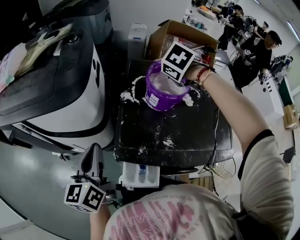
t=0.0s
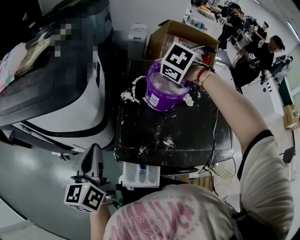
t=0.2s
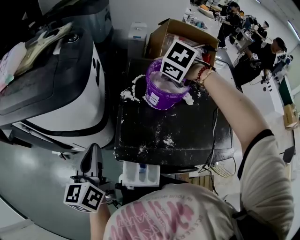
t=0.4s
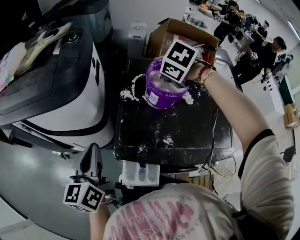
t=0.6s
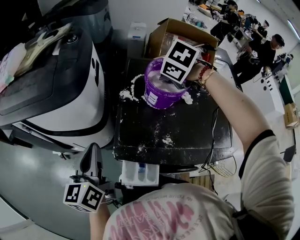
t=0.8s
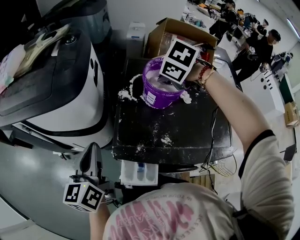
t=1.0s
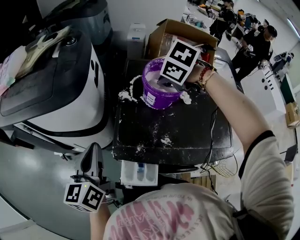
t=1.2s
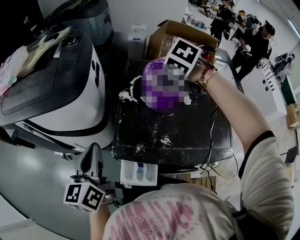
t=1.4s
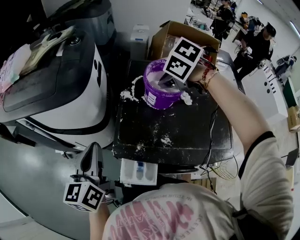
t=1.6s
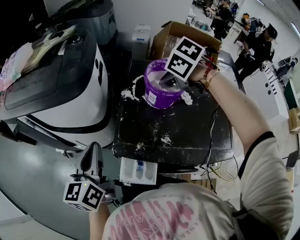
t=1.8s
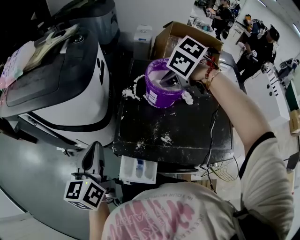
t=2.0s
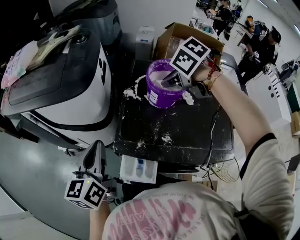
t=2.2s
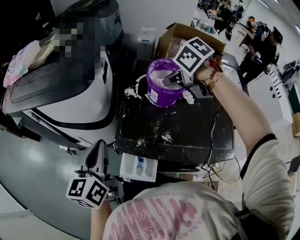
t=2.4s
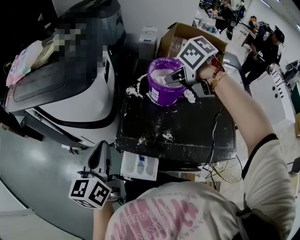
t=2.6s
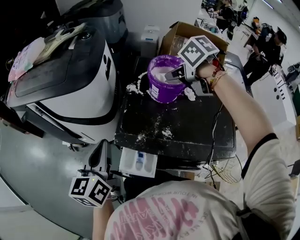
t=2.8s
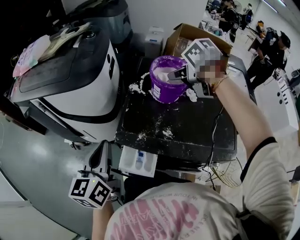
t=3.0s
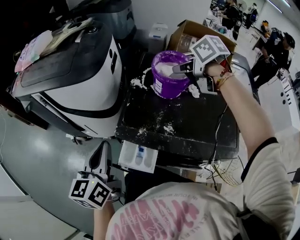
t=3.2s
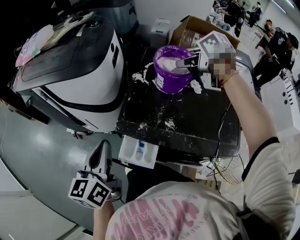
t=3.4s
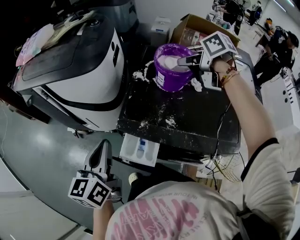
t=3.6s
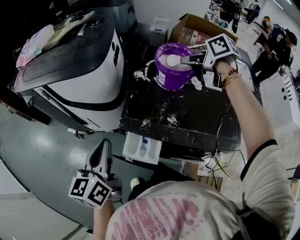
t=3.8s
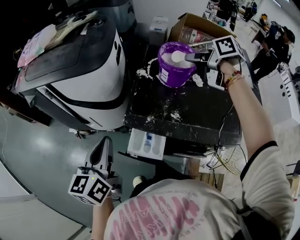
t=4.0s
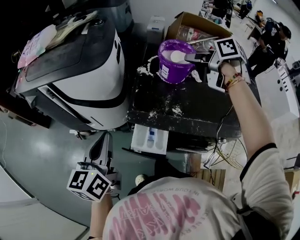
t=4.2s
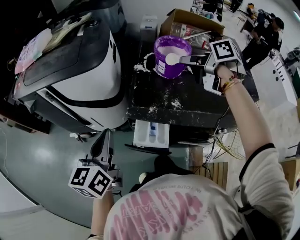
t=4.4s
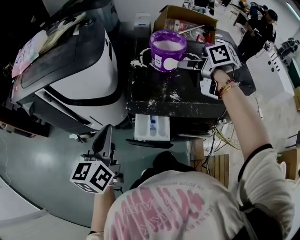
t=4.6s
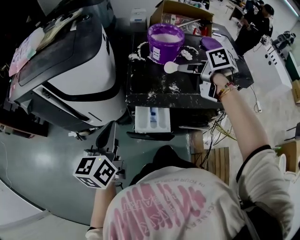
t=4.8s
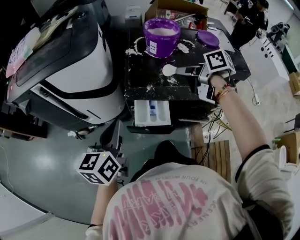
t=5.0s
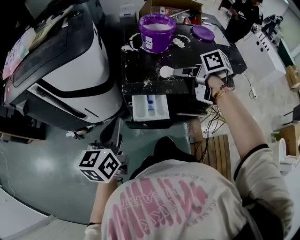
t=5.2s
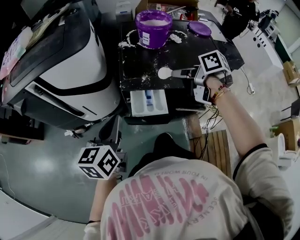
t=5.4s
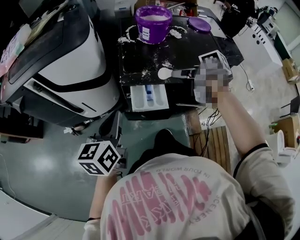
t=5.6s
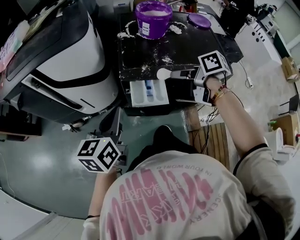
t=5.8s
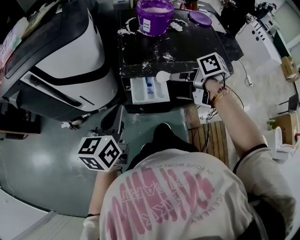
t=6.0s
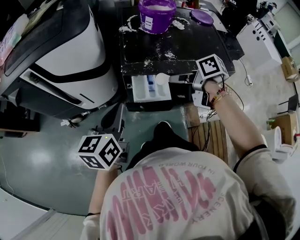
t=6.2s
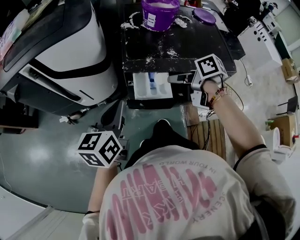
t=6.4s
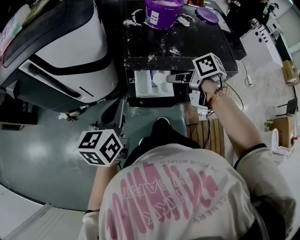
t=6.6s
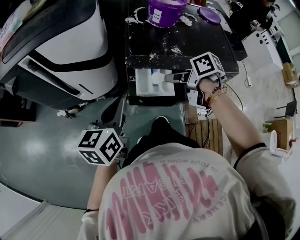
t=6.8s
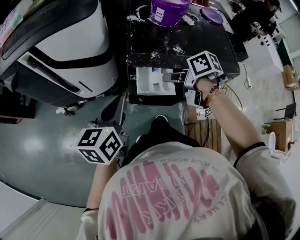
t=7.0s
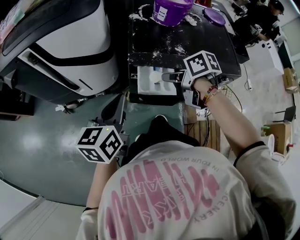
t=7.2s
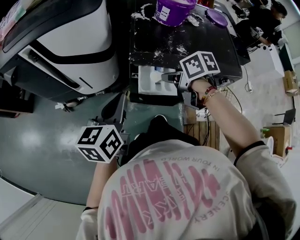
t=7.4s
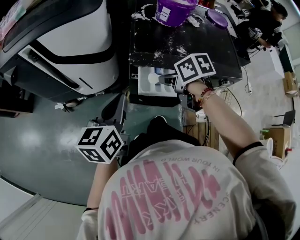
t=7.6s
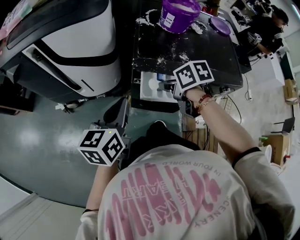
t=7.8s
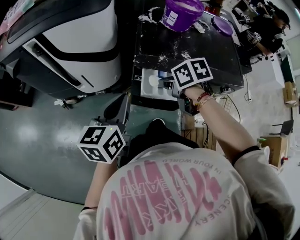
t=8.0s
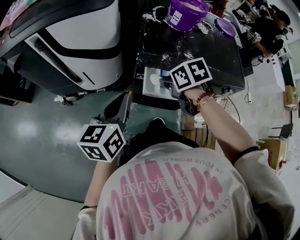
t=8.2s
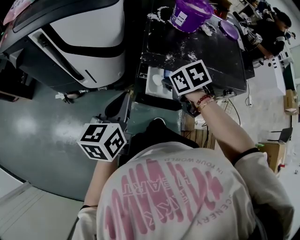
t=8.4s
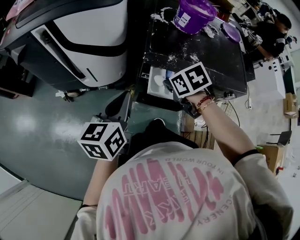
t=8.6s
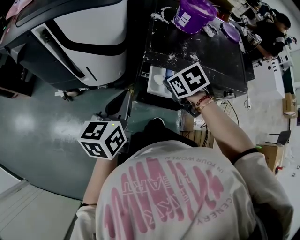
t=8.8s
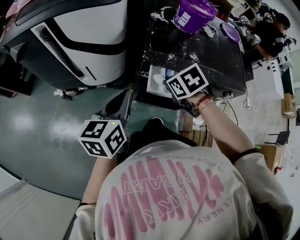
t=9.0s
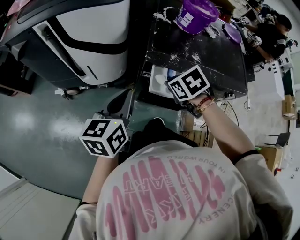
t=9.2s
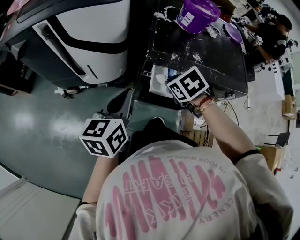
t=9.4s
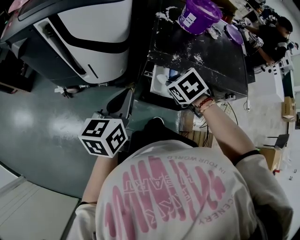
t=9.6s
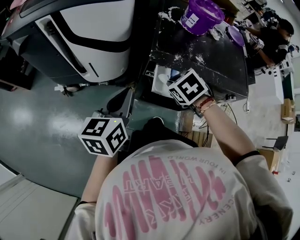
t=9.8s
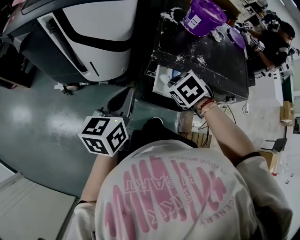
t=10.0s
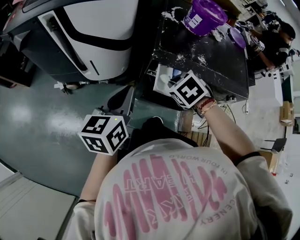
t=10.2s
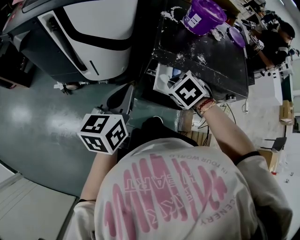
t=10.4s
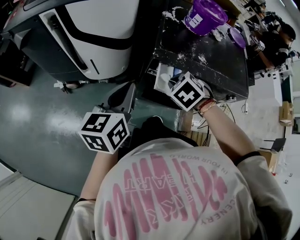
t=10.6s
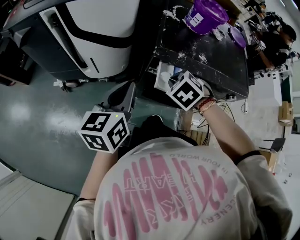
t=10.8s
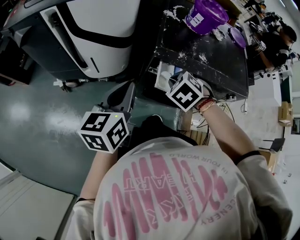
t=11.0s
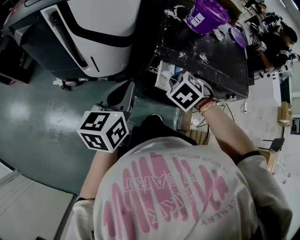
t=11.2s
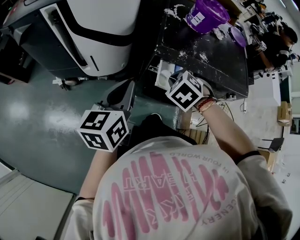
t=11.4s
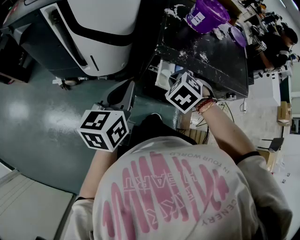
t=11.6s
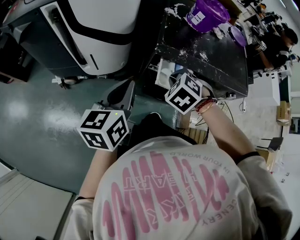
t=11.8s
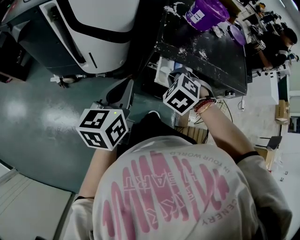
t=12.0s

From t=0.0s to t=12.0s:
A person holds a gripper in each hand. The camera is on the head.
From t=0.0s to t=1.6s: The right gripper moves approximately 10 cm, and rotates roughly 30 degrees.
From t=1.6s to t=3.0s: The left gripper moves backward, some 5 cm, while the right gripper changes its angle by about 30 degrees.
From t=3.0s to t=4.4s: The left gripper moves to the left, roughly 5 cm, while the right gripper shifts about 10 cm backward, and changes its angle by about 30 degrees.
From t=4.4s to t=6.0s: The right gripper heads backward, downward and to the left, covering some 25 cm. The left gripper goes about 10 cm downward and backward, and rotates approximately 20 degrees.
From t=6.0s to t=7.6s: The right gripper is displaced to the left and downward by some 10 cm, and changes its angle by approximately 30 degrees.
From t=7.6s to t=9.0s: The right gripper swivels approximately 30 degrees.
From t=9.0s to t=10.4s: The right gripper rotates roughly 20 degrees.
From t=10.4s to t=12.0s: The right gripper turns by roughly 20 degrees.

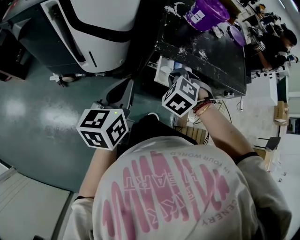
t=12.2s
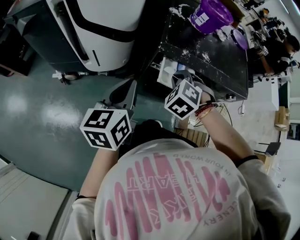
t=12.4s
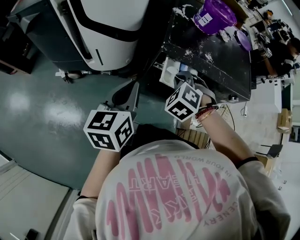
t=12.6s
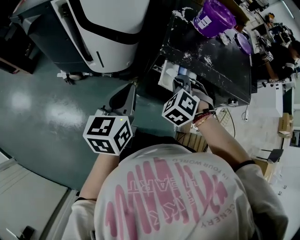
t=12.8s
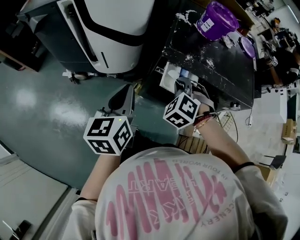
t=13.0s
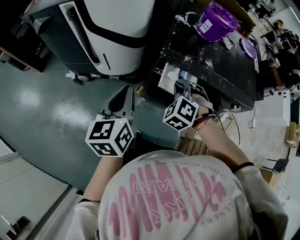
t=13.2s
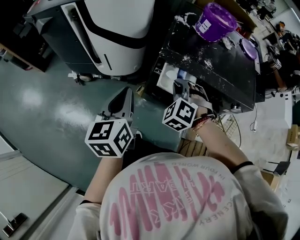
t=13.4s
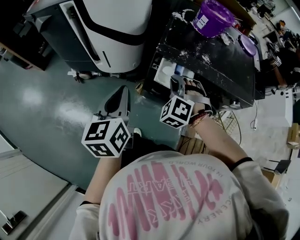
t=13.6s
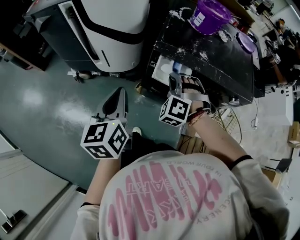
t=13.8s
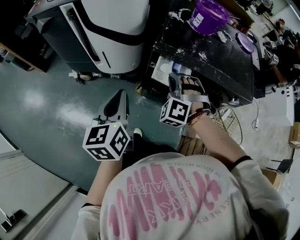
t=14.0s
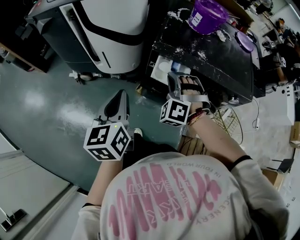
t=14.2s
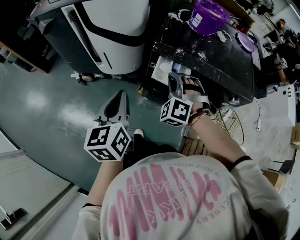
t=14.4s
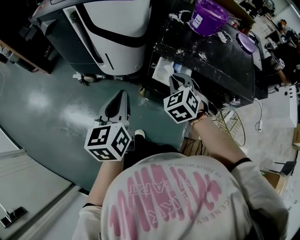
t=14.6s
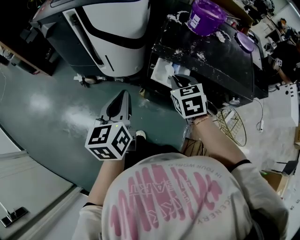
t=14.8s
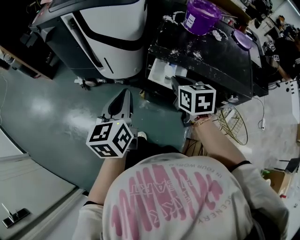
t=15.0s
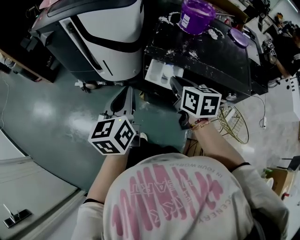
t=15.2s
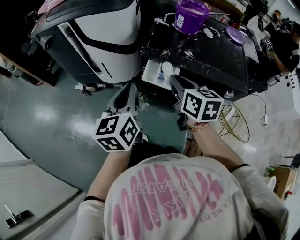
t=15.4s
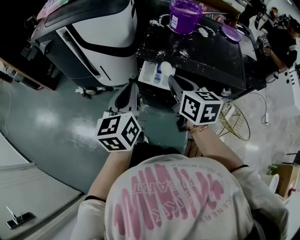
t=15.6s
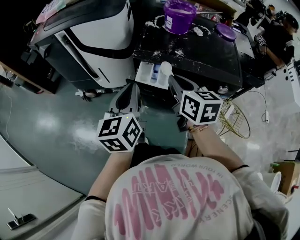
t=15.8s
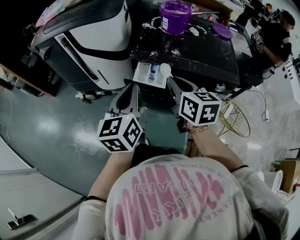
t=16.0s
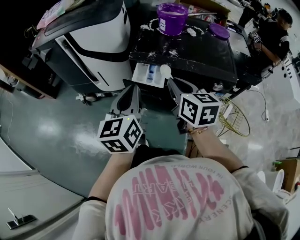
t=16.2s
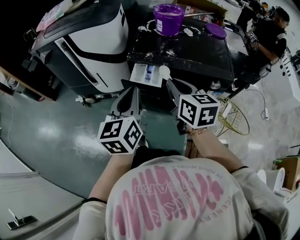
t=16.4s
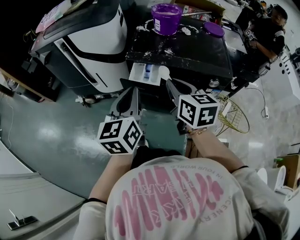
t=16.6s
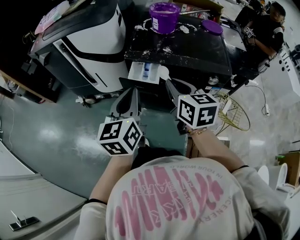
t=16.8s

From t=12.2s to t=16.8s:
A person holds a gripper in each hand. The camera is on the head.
From t=12.2s to t=13.8s: The right gripper rotates some 30 degrees. The left gripper heads backward, covering roughly 5 cm, and rotates about 20 degrees.
From t=13.8s to t=15.2s: The right gripper moves upward, approximately 5 cm, and rolls clockwise, seen from behind, by roughly 90 degrees. Meanwhile the left gripper travels to the right by roughly 5 cm.
From t=15.2s to t=16.8s: The left gripper heads to the right and backward, covering approximately 10 cm; the right gripper moves backward, upward and to the right, about 15 cm.

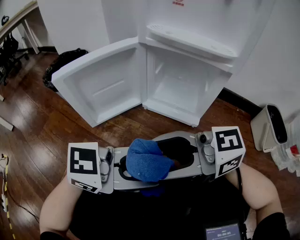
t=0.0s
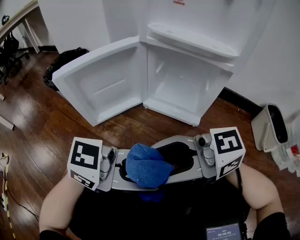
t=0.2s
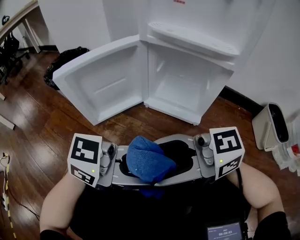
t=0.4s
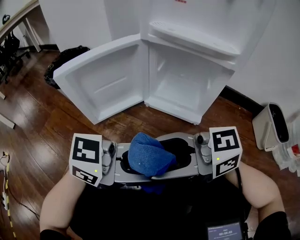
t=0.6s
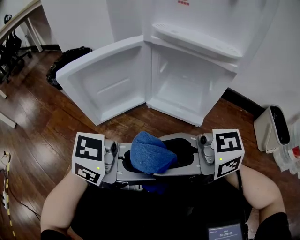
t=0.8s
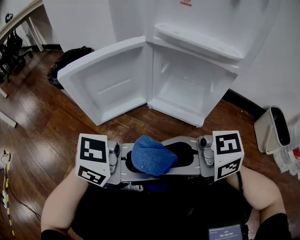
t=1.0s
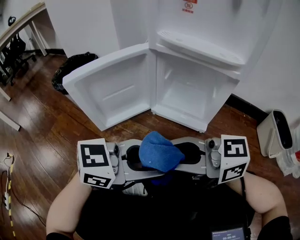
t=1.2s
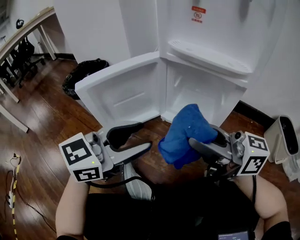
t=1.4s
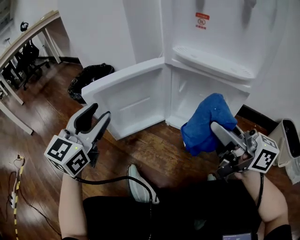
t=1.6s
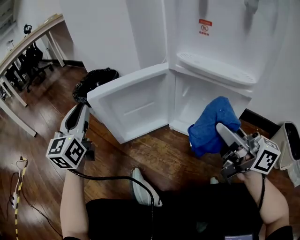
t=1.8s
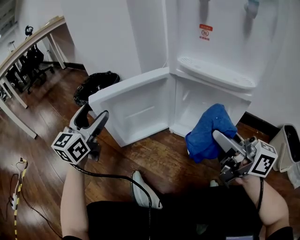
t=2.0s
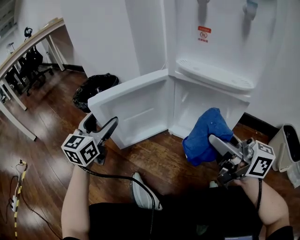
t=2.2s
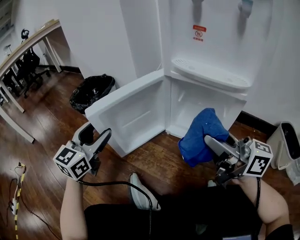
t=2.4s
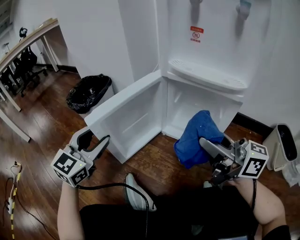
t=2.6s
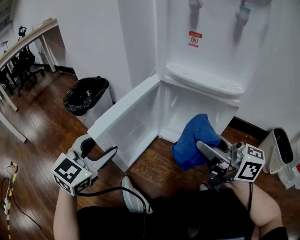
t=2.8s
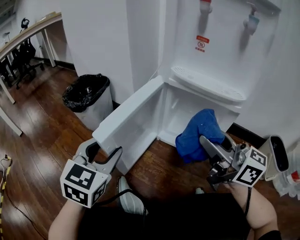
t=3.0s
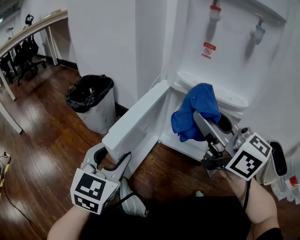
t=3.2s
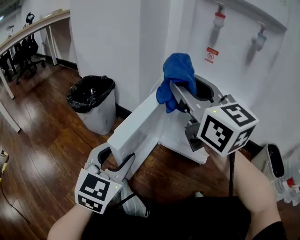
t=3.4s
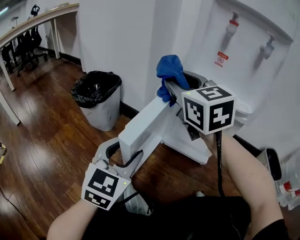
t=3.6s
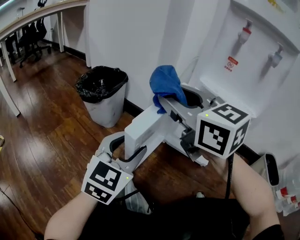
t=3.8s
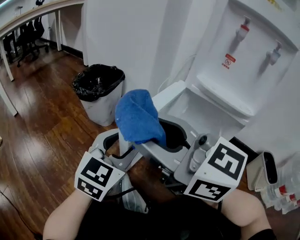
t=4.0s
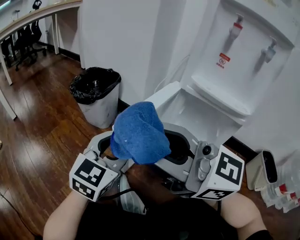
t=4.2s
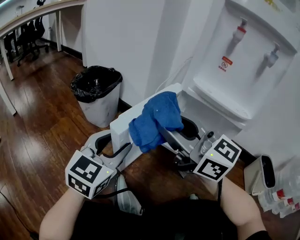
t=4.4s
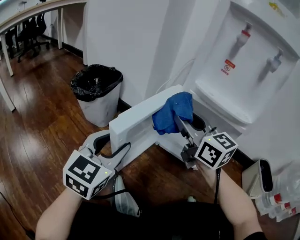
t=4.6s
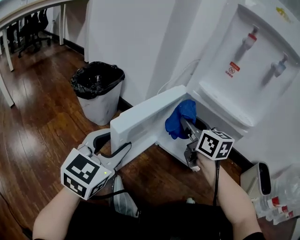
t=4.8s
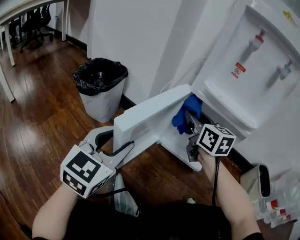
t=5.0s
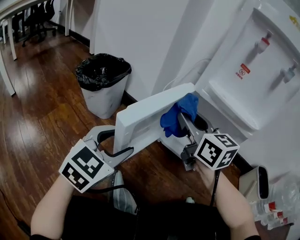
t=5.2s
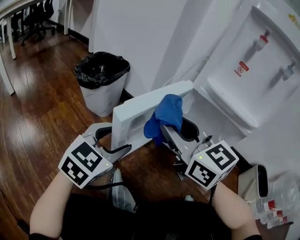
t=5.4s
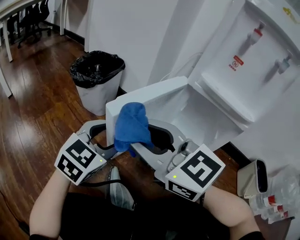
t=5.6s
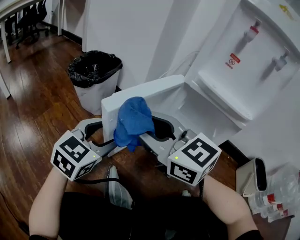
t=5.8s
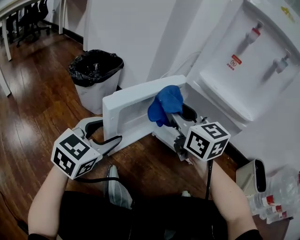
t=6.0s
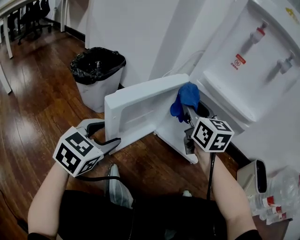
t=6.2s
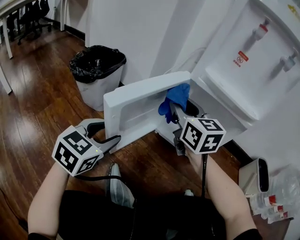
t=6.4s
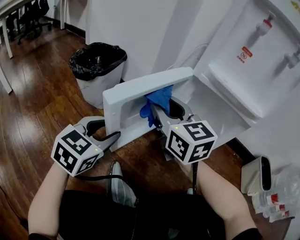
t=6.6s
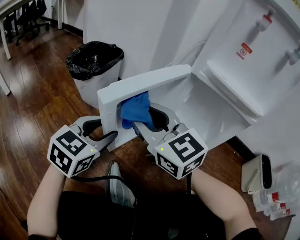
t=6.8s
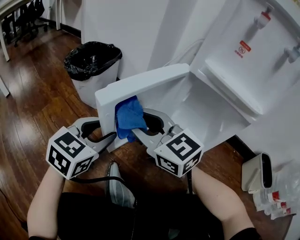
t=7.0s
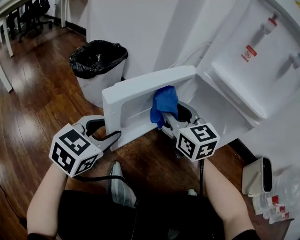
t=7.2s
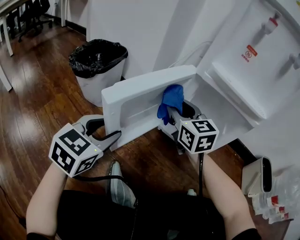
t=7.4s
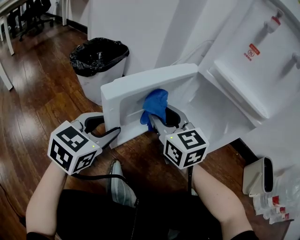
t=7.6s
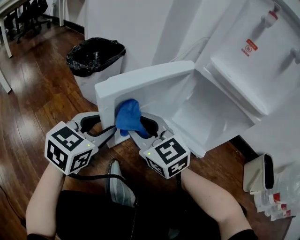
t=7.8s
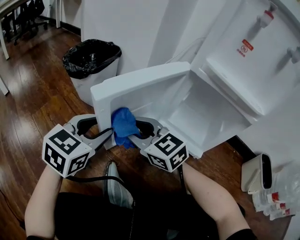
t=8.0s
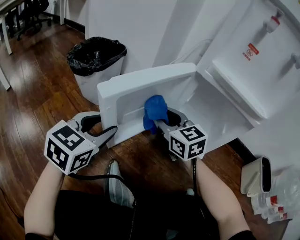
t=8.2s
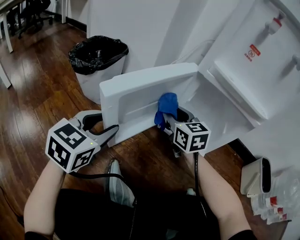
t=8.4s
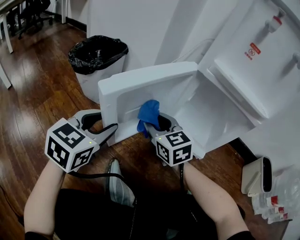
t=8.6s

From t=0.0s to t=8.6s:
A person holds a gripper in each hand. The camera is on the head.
From t=0.0s to t=1.4s: The right gripper ends up roughly 10 cm from where it was, swivels approximately 30 degrees, and closes its fingers, while the left gripper ends up some 15 cm from where it was, and turns by some 40 degrees.
From t=1.4s to t=2.8s: The right gripper changes place by roughly 5 cm. Meanwhile the left gripper is displaced to the left and forward by some 10 cm, rotates roughly 30 degrees, and closes, then reopens.
From t=2.8s to t=4.4s: The right gripper shifts roughly 15 cm to the left and upward, and rotates some 20 degrees.
From t=4.4s to t=5.8s: The right gripper is displaced downward by about 5 cm, and travels to the right and back again, roughly 10 cm each way, while the left gripper moves some 5 cm.
From t=5.8s to t=7.2s: The right gripper moves left and right over some 15 cm, changing direction 2 times.
From t=7.2s to t=8.6s: The right gripper goes left and right, approximately 15 cm each way, reversing 2 times.
